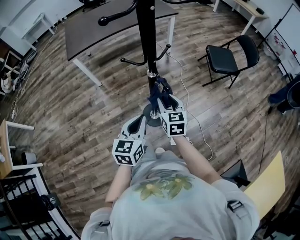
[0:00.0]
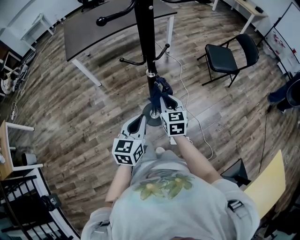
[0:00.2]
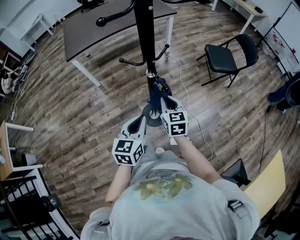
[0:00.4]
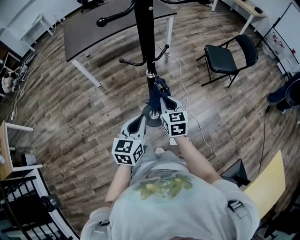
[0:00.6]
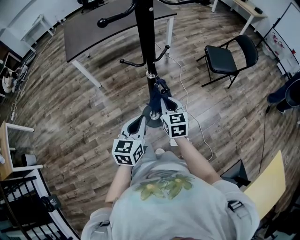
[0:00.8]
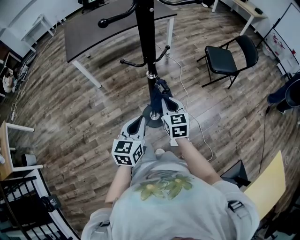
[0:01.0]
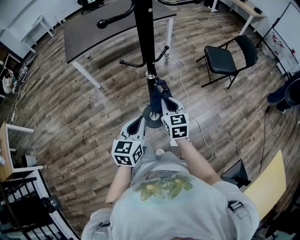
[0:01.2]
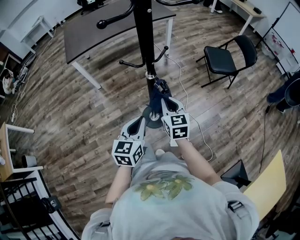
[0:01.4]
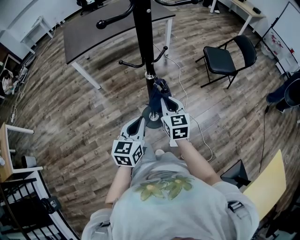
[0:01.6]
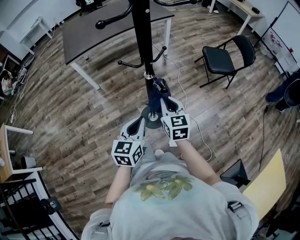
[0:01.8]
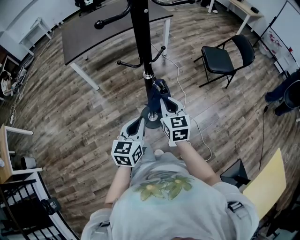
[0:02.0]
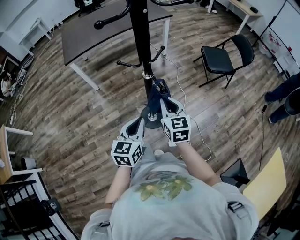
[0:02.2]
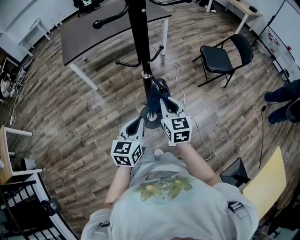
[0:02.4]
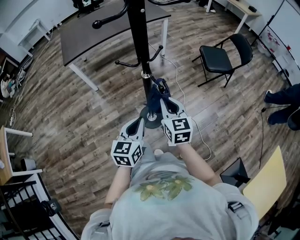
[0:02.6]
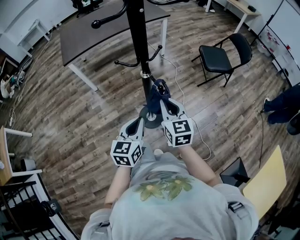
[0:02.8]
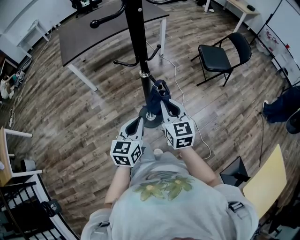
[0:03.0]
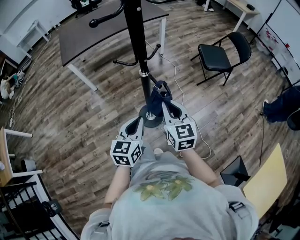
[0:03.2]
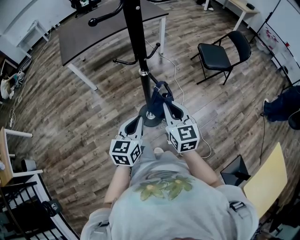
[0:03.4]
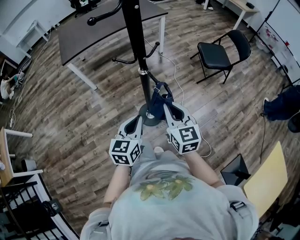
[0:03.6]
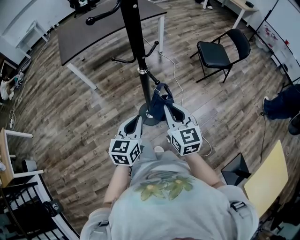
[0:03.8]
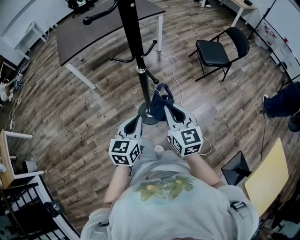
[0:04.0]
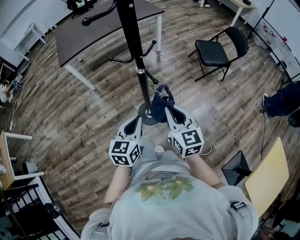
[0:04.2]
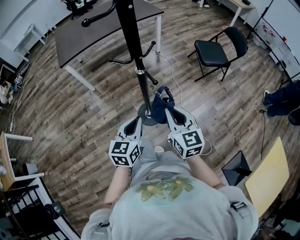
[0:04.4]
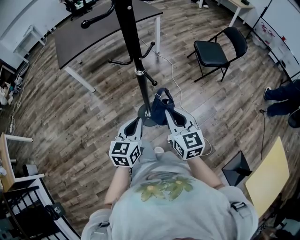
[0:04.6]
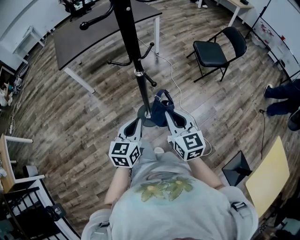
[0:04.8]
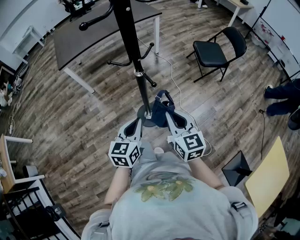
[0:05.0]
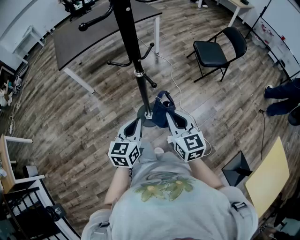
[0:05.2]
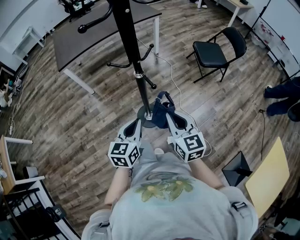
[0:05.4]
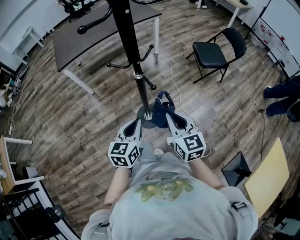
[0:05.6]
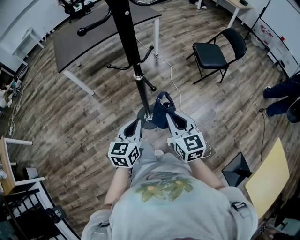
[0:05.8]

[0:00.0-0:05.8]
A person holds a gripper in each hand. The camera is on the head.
0:00.0 to 0:01.4: The right gripper closes up.
0:01.4 to 0:02.8: The right gripper moves about 5 cm.
0:02.8 to 0:04.4: The right gripper heads backward, covering roughly 5 cm.
0:04.4 to 0:05.8: The grippers stay close to where they were, moving slightly.

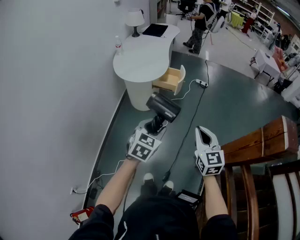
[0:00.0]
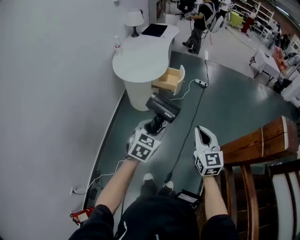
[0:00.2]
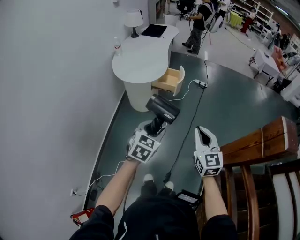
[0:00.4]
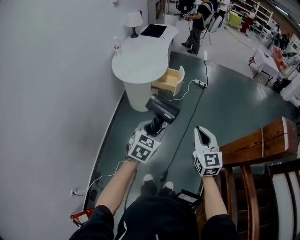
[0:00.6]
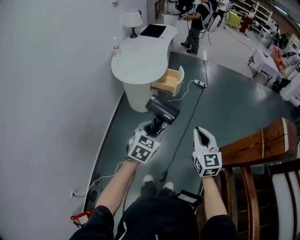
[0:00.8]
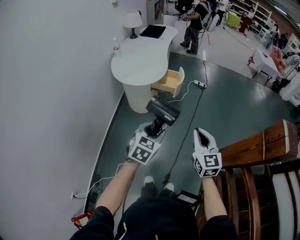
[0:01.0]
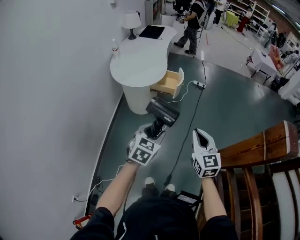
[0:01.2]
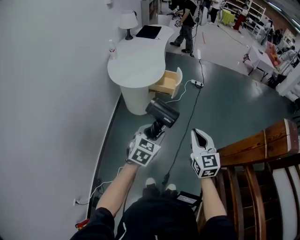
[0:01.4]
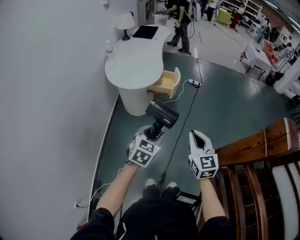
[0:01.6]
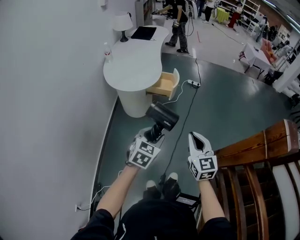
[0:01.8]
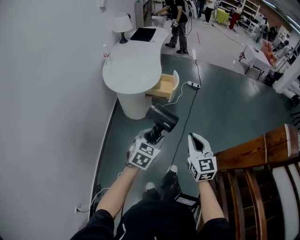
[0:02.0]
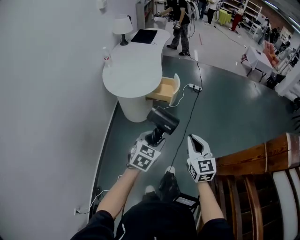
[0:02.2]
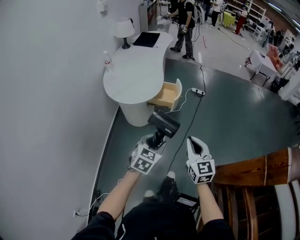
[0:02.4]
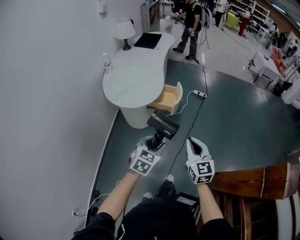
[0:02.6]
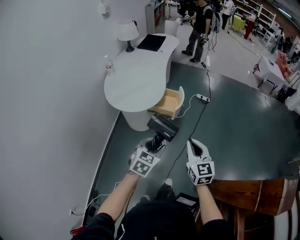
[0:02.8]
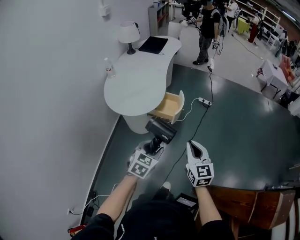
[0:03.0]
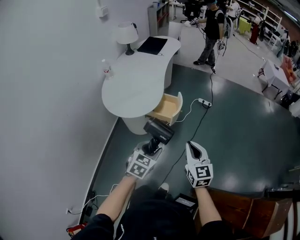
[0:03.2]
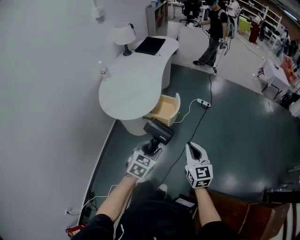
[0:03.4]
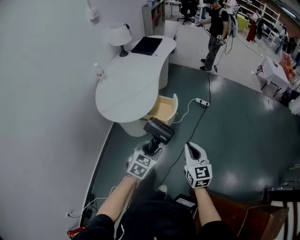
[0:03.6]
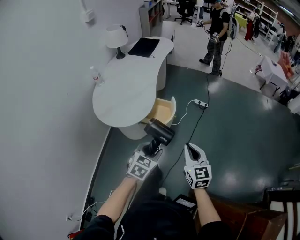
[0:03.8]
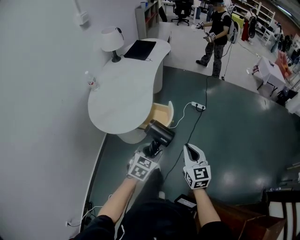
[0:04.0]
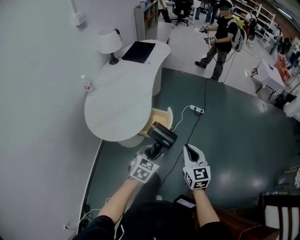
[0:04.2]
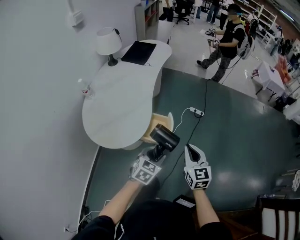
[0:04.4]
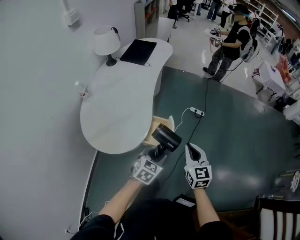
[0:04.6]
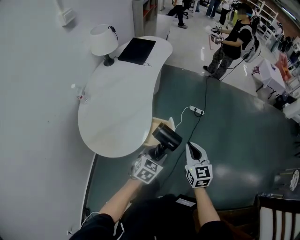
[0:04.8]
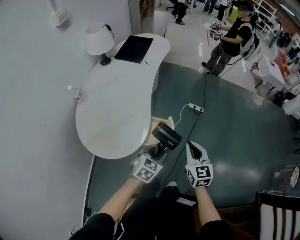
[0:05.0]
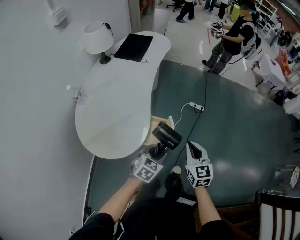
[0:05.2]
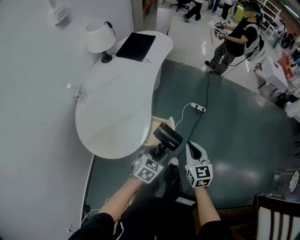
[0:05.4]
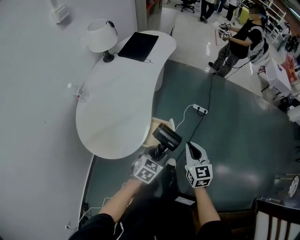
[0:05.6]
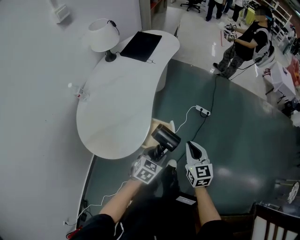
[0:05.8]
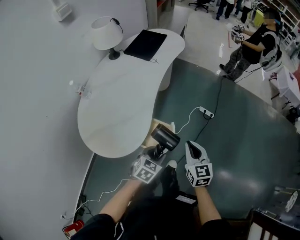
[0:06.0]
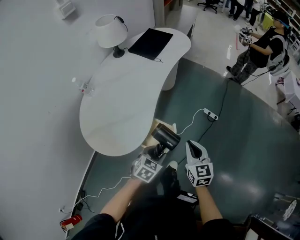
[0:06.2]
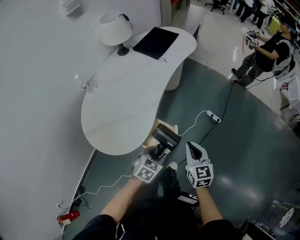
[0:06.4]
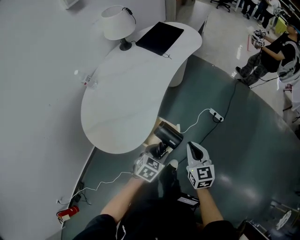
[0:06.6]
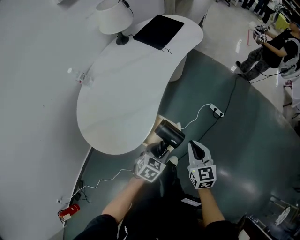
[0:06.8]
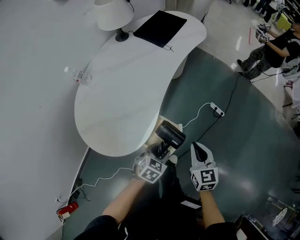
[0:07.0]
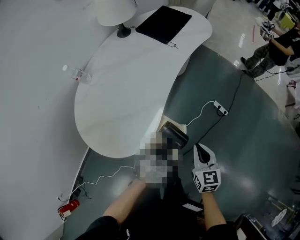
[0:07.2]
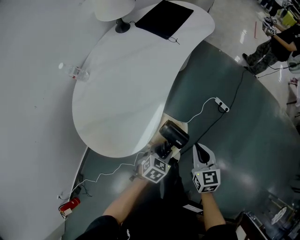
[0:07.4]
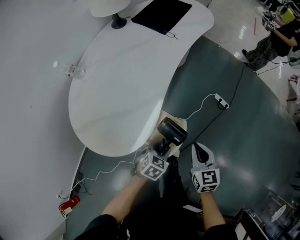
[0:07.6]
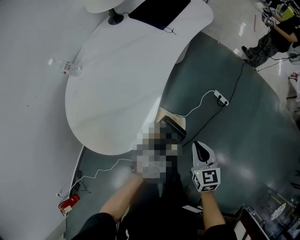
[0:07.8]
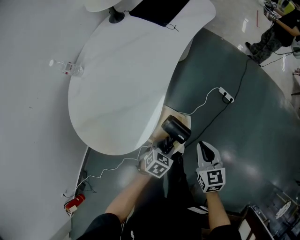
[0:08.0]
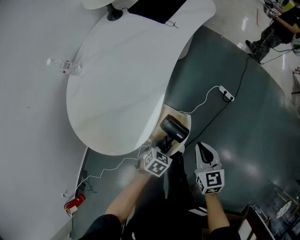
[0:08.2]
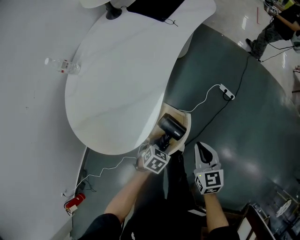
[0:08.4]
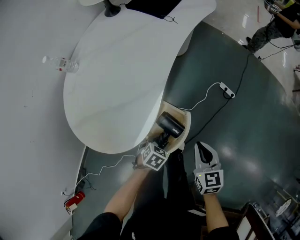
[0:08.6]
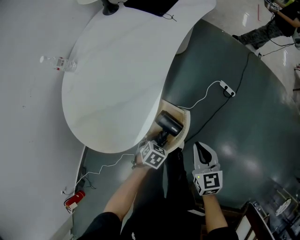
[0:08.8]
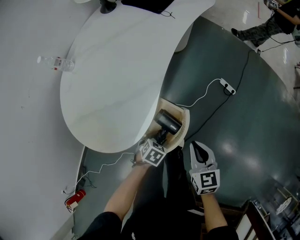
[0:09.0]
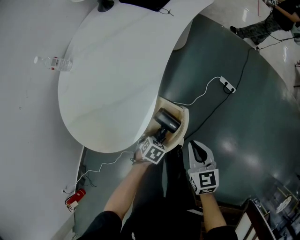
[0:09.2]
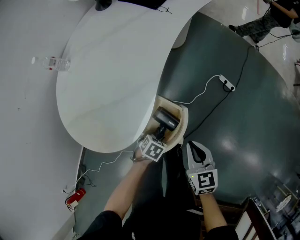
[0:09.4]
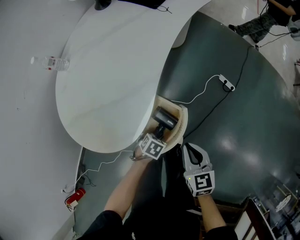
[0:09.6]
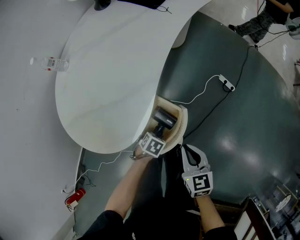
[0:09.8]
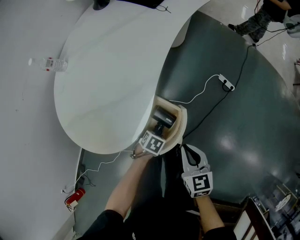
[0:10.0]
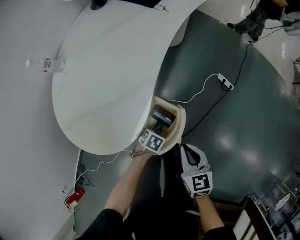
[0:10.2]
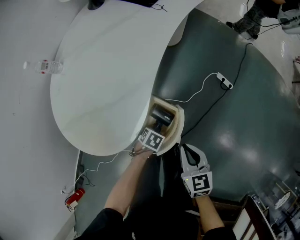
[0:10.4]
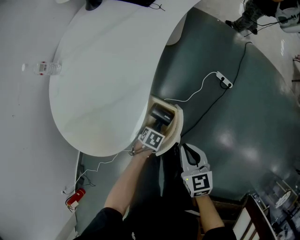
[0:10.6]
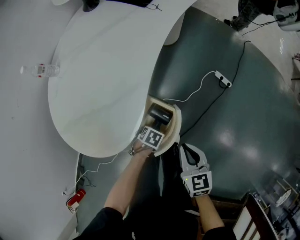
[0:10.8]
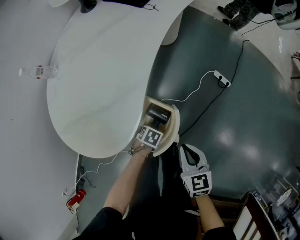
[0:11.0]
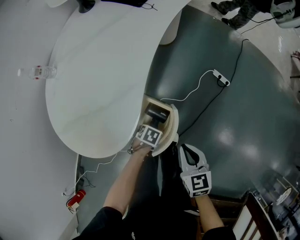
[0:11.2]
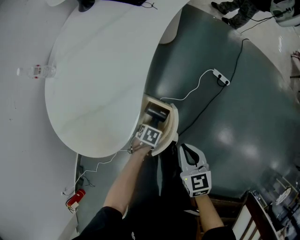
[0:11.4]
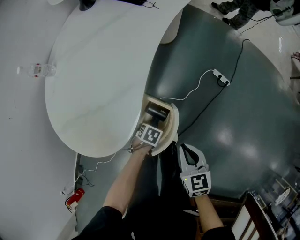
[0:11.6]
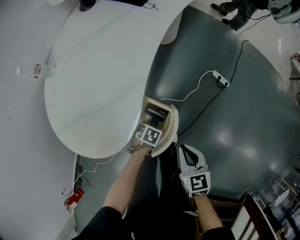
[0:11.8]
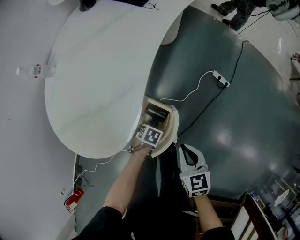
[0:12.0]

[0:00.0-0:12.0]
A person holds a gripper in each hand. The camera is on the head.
0:00.0 to 0:01.6: The right gripper heads to the left, covering about 5 cm.
0:01.6 to 0:03.0: The grippers both shift forward by some 20 cm.
0:03.0 to 0:04.4: The grippers both shift forward by roughly 25 cm.
0:04.4 to 0:06.0: The left gripper shifts about 15 cm forward and downward, while the right gripper travels forward by some 15 cm.
0:06.0 to 0:07.6: The grippers both shift downward and forward by roughly 15 cm.
0:07.6 to 0:09.0: The right gripper moves approximately 5 cm. Meanwhile the left gripper heads downward, covering about 10 cm.
0:09.0 to 0:10.4: The left gripper moves downward, approximately 5 cm.
0:10.4 to 0:12.0: The grippers stay close to where they were, moving slightly.

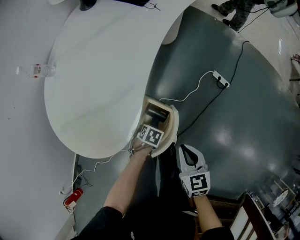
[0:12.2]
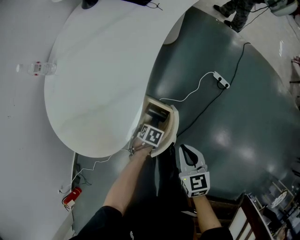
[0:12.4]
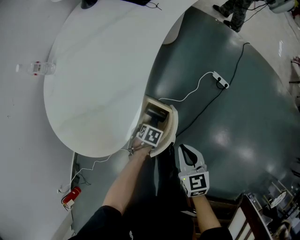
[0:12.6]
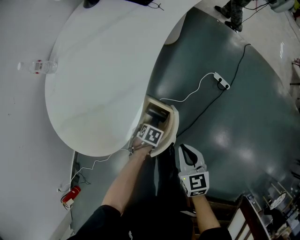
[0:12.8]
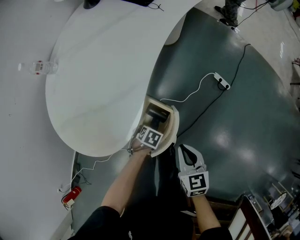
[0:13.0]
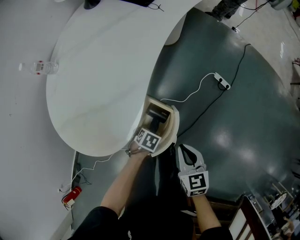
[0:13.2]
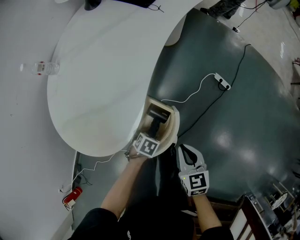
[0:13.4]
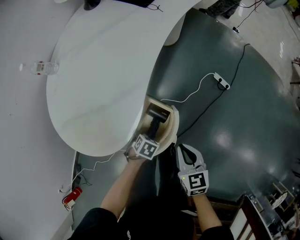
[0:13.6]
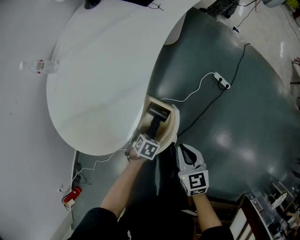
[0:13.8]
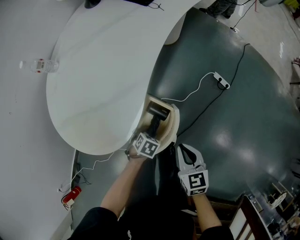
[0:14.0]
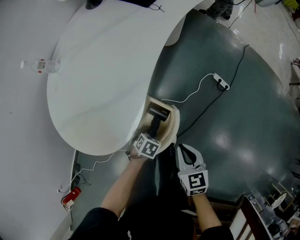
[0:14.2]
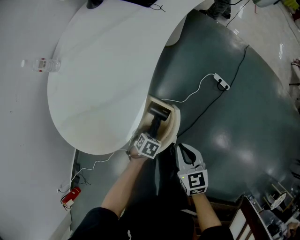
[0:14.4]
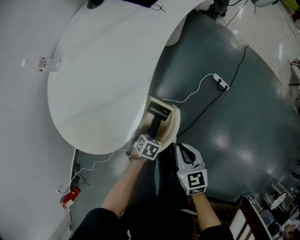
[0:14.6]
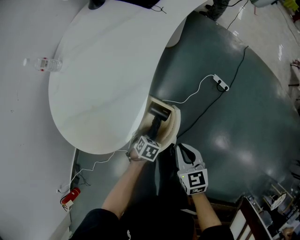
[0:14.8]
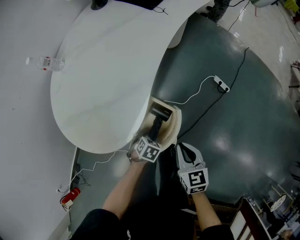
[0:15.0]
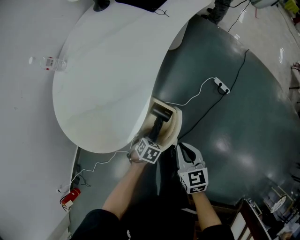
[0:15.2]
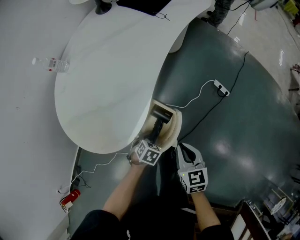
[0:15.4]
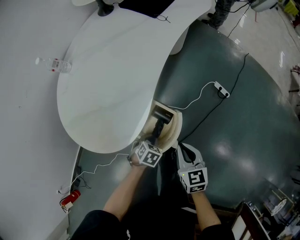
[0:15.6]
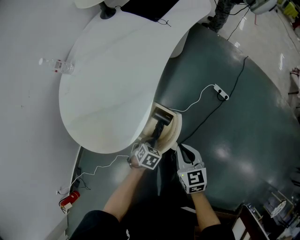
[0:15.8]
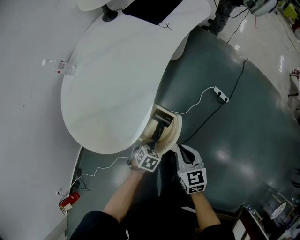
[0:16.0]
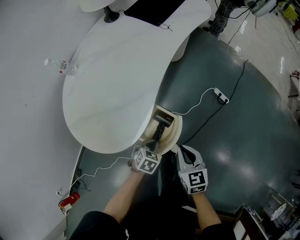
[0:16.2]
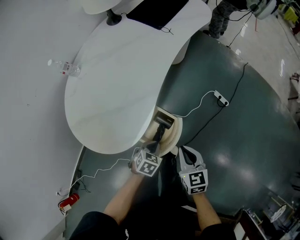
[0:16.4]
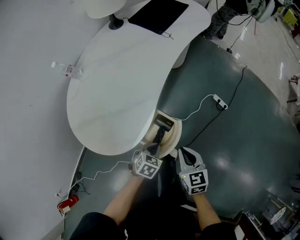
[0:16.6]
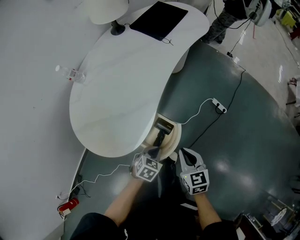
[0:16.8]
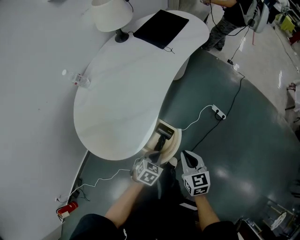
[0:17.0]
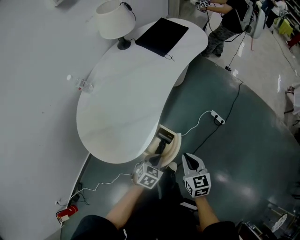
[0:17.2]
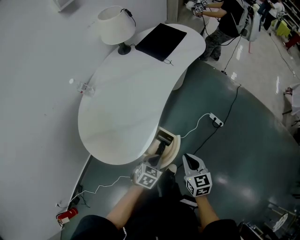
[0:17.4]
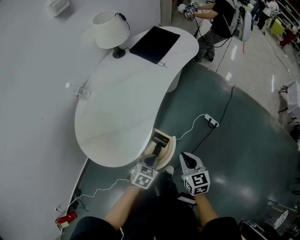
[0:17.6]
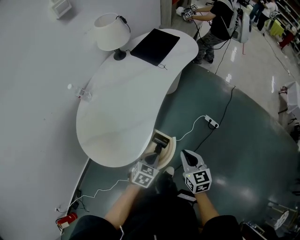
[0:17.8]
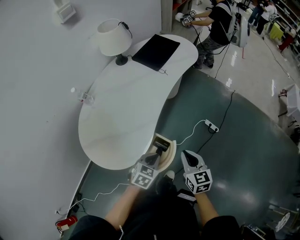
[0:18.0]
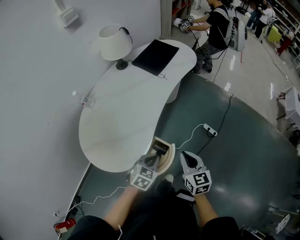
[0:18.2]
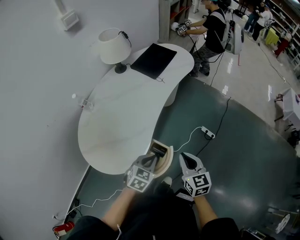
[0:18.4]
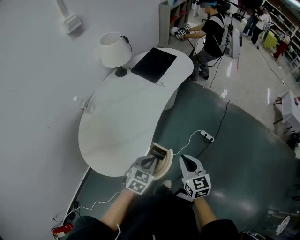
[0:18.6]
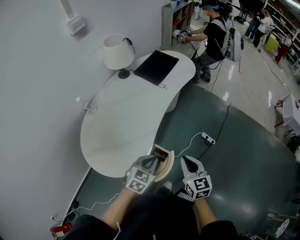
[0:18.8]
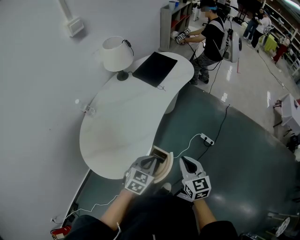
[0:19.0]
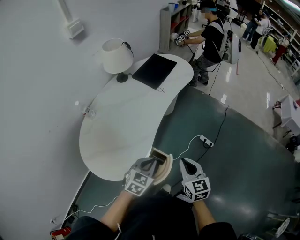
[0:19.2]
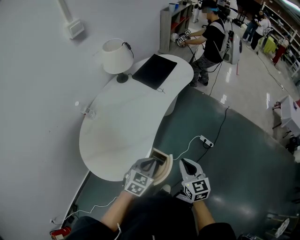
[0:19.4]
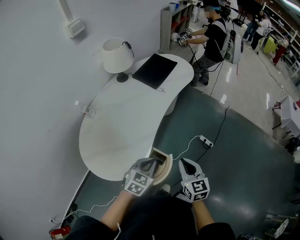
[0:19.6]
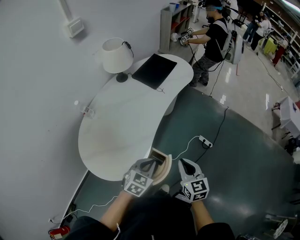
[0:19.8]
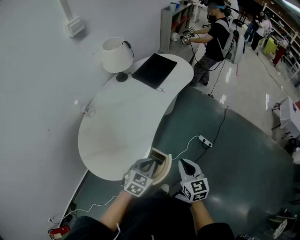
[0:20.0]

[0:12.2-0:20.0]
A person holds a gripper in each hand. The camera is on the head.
0:12.2 to 0:13.8: The grippers stay close to where they were, moving slightly.
0:13.8 to 0:15.4: The grippers stay close to where they were, moving slightly.
0:15.4 to 0:16.8: The left gripper moves upward, roughly 10 cm, and closes up. Meanwhile the right gripper heads upward, covering approximately 5 cm.
0:16.8 to 0:18.4: The grippers both shift upward by approximately 15 cm.
0:18.4 to 0:20.0: There are only small adjustments of the grippers.
